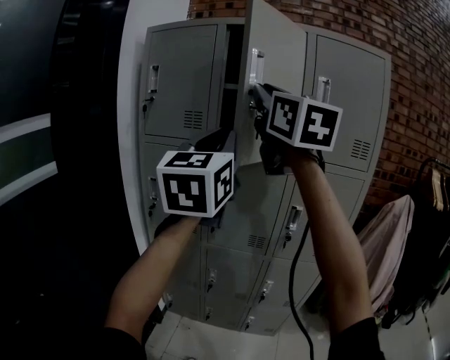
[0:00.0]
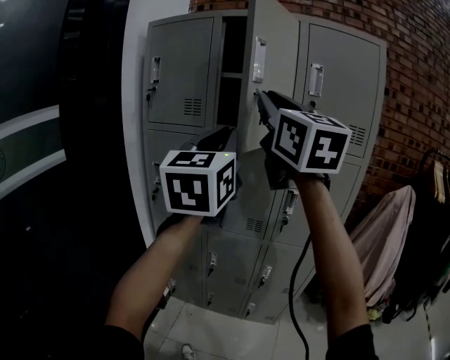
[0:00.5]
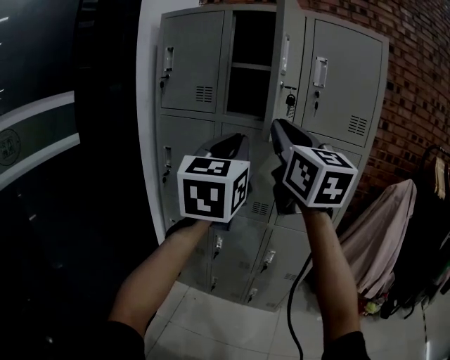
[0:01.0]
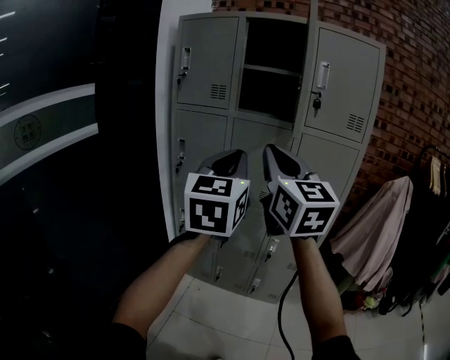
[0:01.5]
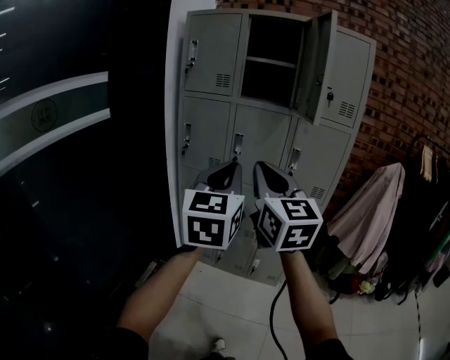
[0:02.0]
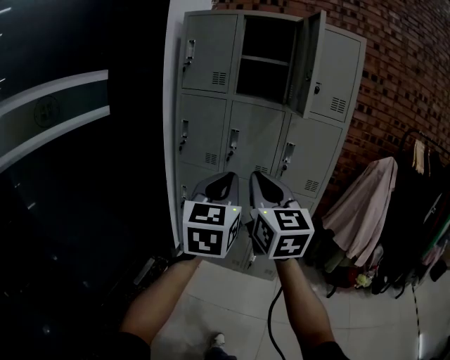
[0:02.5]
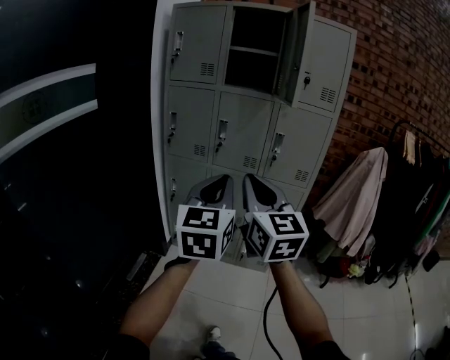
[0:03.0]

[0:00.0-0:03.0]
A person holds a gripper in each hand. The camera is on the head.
0.0 to 1.5 s: The two grippers go approximately 25 cm backward and downward.
1.5 to 3.0 s: The two grippers go roughly 20 cm backward and downward.

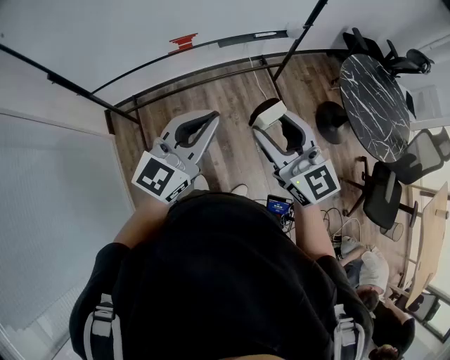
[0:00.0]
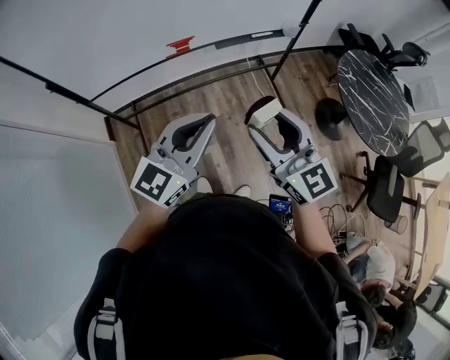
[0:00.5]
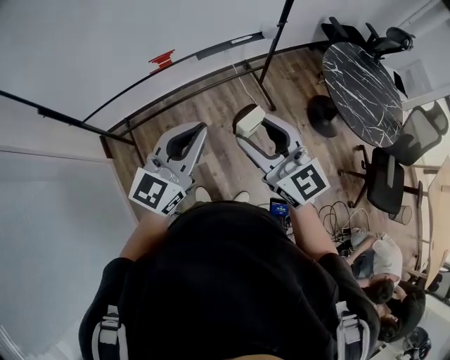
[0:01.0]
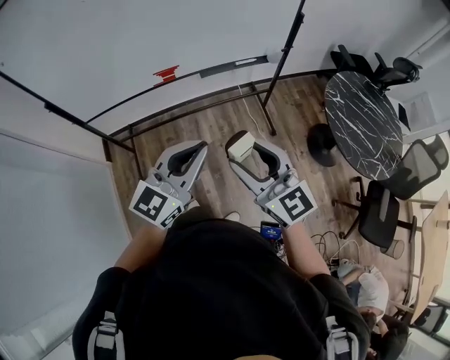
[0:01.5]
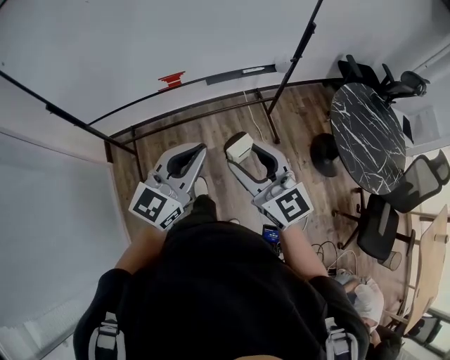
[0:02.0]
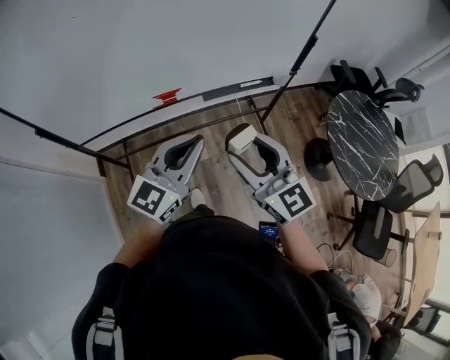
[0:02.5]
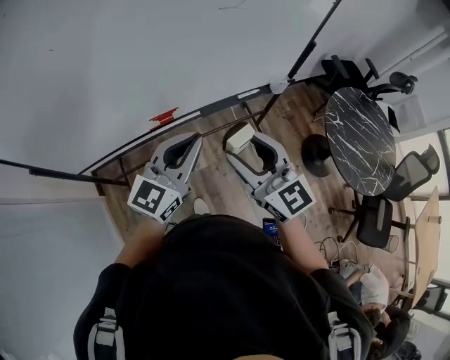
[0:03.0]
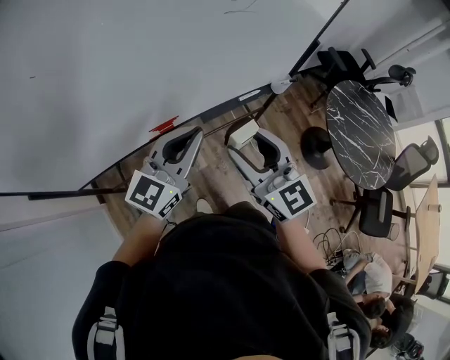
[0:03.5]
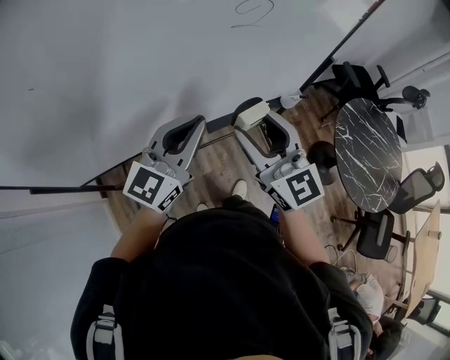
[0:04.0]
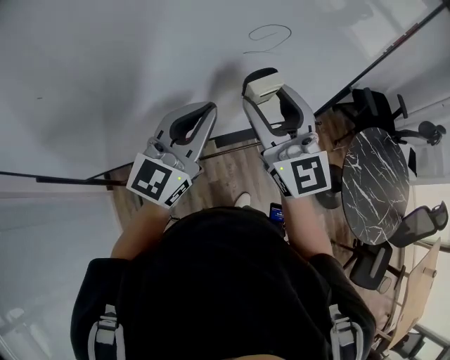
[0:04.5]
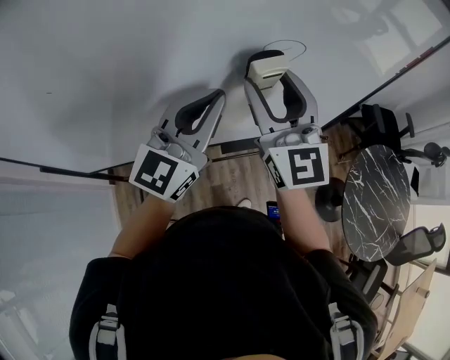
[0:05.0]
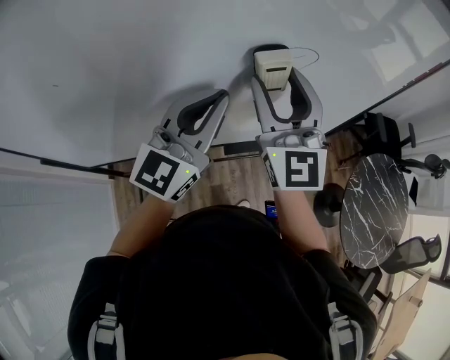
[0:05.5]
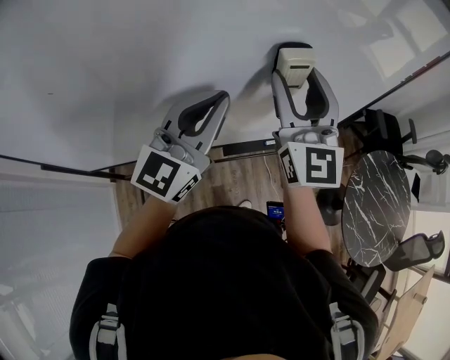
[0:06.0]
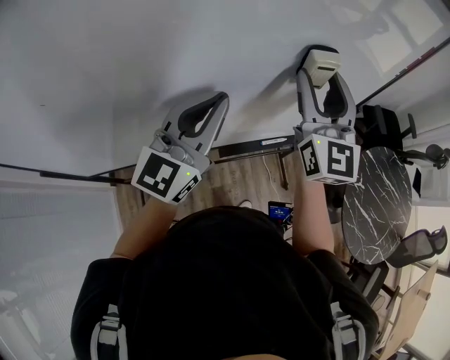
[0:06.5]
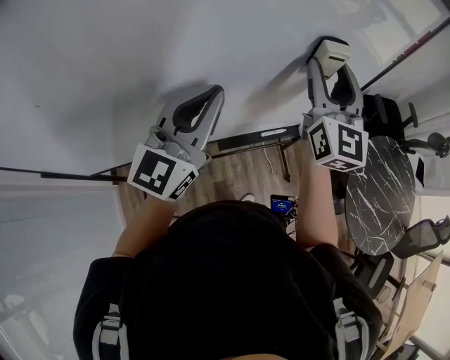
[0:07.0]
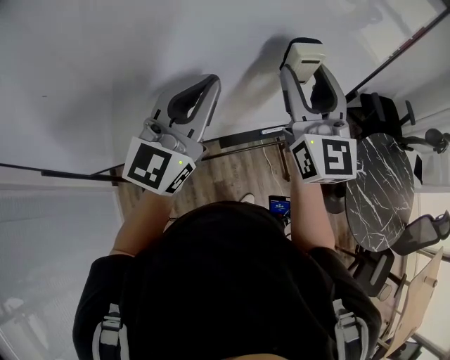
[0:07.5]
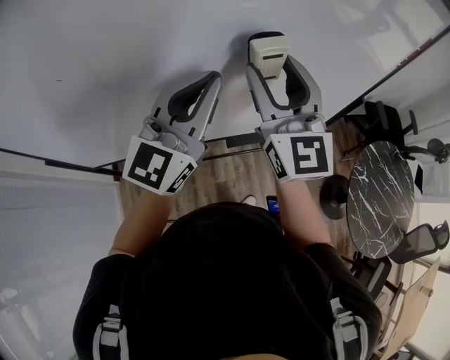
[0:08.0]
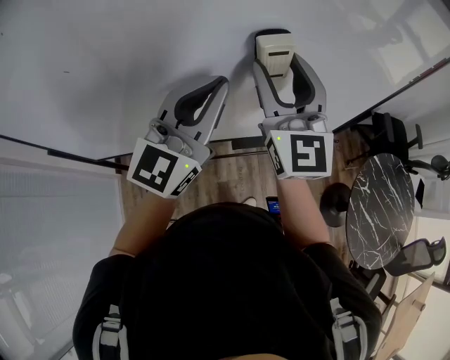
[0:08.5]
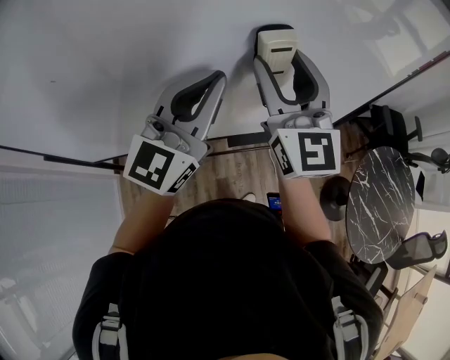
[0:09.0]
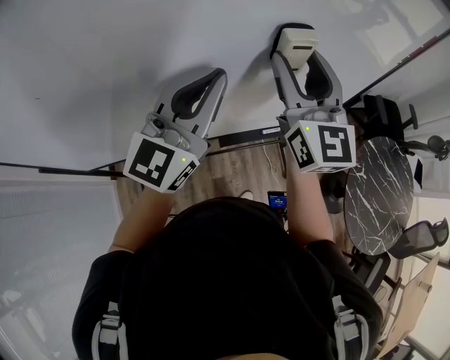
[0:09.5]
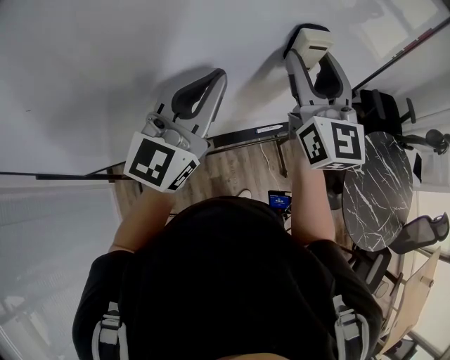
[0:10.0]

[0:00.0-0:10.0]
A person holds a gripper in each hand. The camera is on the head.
0.0 to 2.0 s: The right gripper changes place by about 5 cm; the left gripper is displaced to the right by approximately 5 cm.
2.0 to 4.0 s: The two grippers go about 35 cm forward.
4.0 to 6.0 s: Both grippers travel together forward and upward, roughly 15 cm.
6.0 to 8.0 s: The right gripper travels to the right and back again, about 10 cm each way.
8.0 to 10.0 s: The left gripper is displaced to the right by some 5 cm. The right gripper goes some 15 cm to the right and forward.

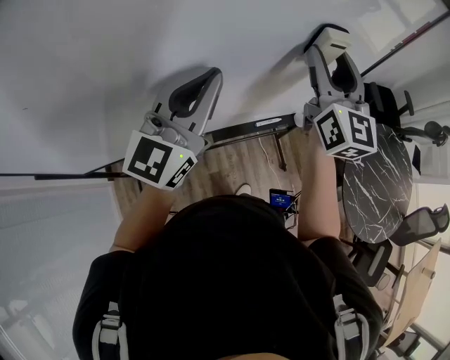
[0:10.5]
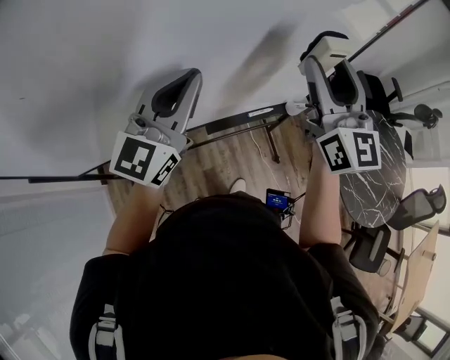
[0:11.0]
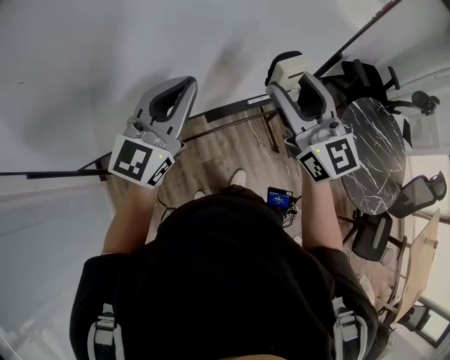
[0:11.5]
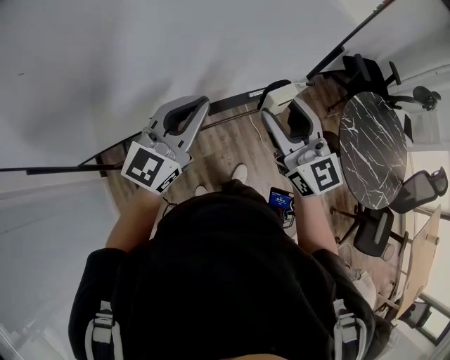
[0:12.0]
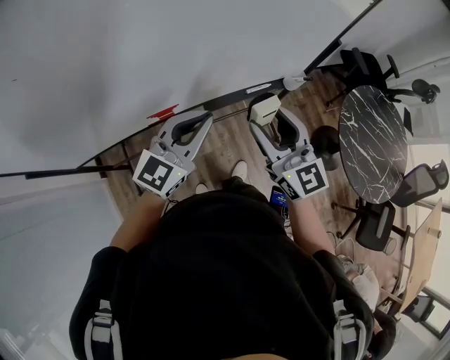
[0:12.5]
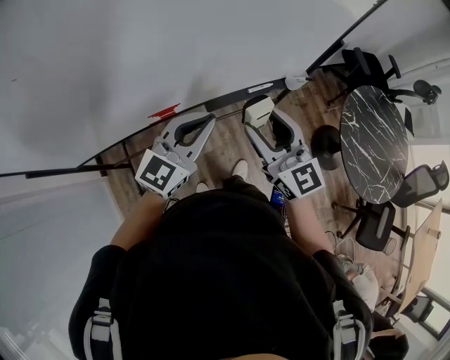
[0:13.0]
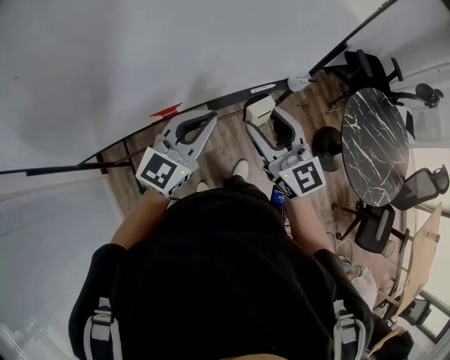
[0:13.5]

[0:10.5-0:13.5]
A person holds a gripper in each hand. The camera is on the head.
10.5 to 12.0 s: The right gripper heads backward and downward, covering approximately 25 cm, while the left gripper shifts approximately 15 cm backward and downward.
12.0 to 13.5 s: The two grippers go roughly 5 cm downward.

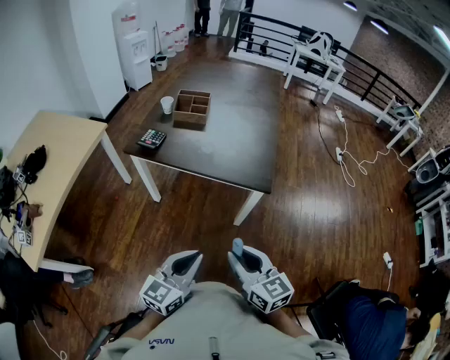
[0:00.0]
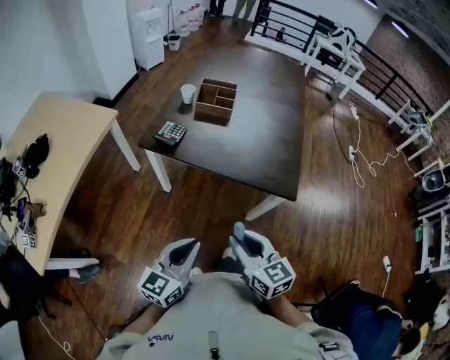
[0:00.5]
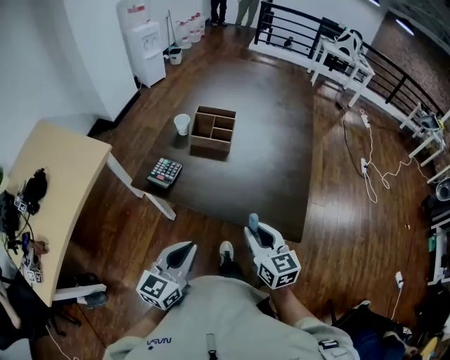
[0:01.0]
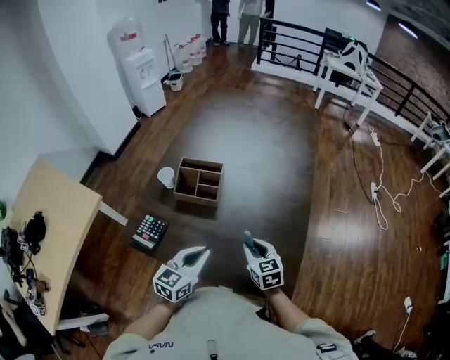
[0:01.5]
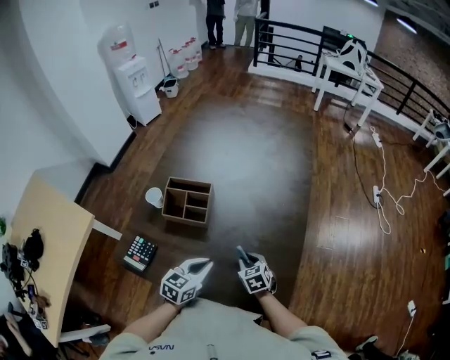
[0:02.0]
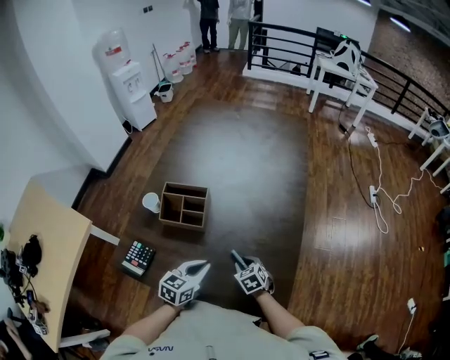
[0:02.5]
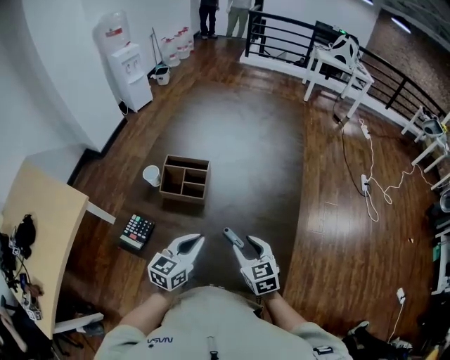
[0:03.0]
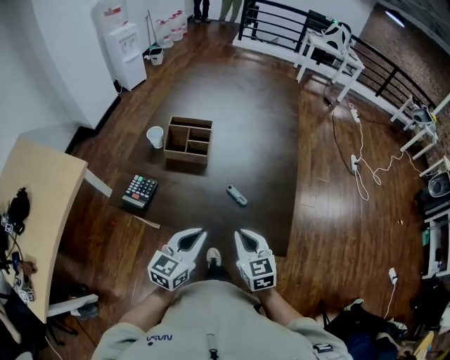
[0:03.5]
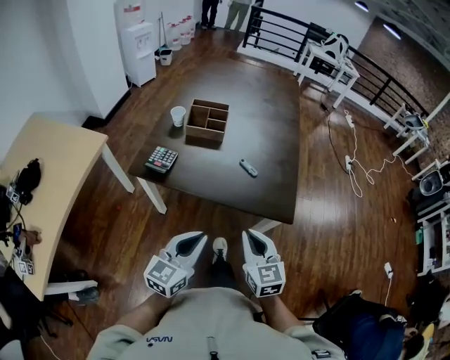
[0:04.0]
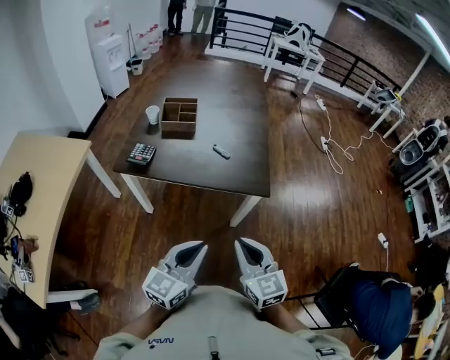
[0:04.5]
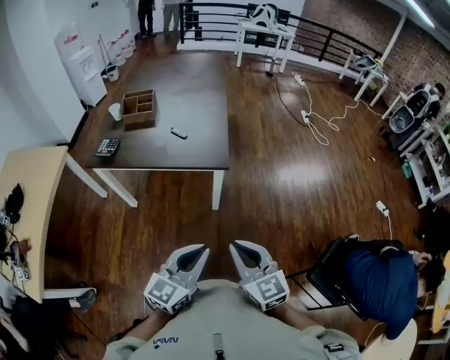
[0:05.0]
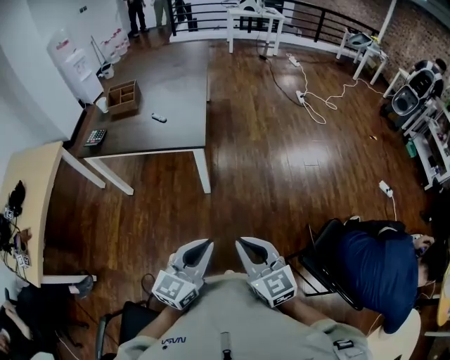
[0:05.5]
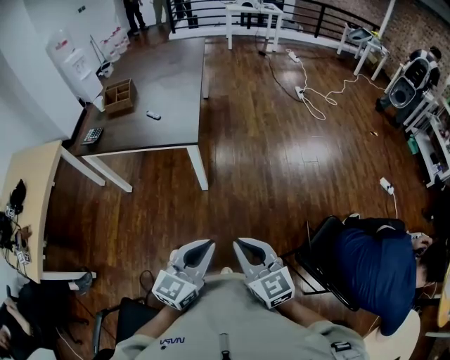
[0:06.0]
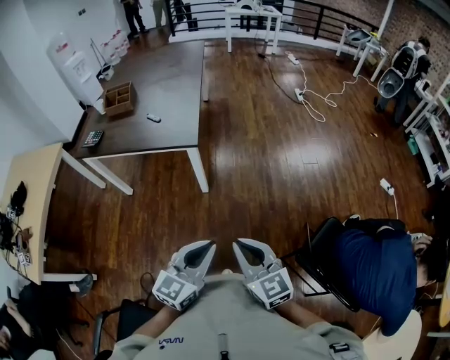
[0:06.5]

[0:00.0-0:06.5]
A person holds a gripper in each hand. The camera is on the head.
0.0 to 2.0 s: Both grippers are carried forward, roughly 50 cm. The right gripper travels downward by approximately 25 cm, and angles its fingers downward, by some 30 degrees, while the left gripper turns by approximately 20 degrees.
2.0 to 4.5 s: Both grippers are carried backward, some 40 cm. The right gripper shifts about 25 cm upward, tilts its fingers roughly 30 degrees upward, and closes its fingers. The left gripper changes its angle by some 30 degrees.
4.5 to 6.5 s: Both grippers travel together to the right and backward, some 35 cm.

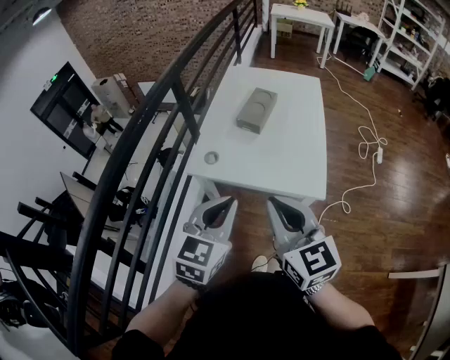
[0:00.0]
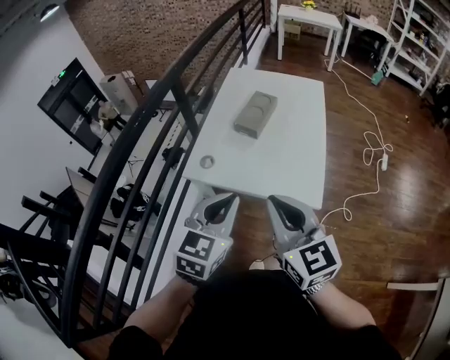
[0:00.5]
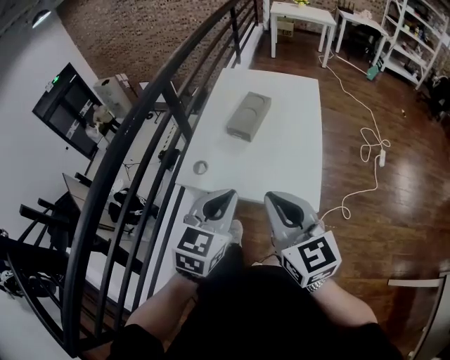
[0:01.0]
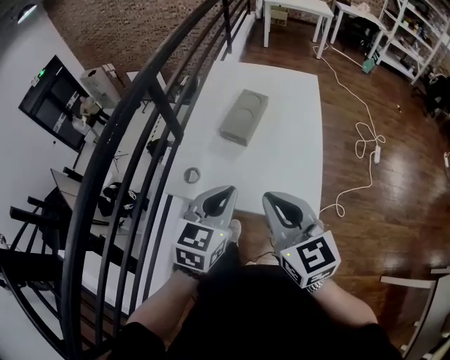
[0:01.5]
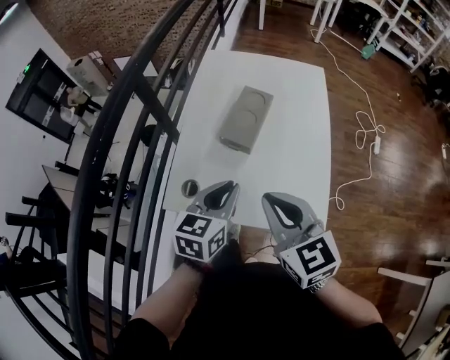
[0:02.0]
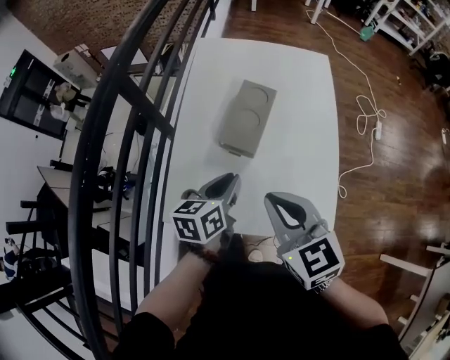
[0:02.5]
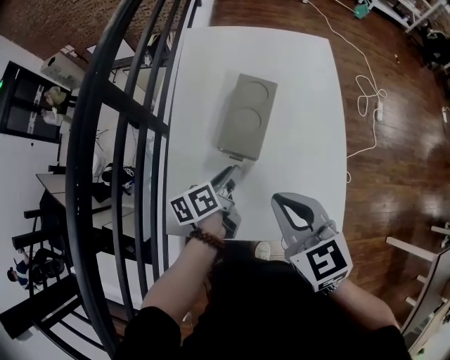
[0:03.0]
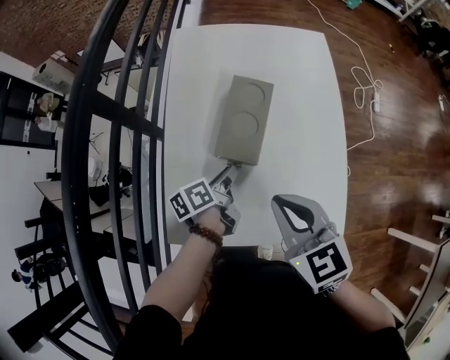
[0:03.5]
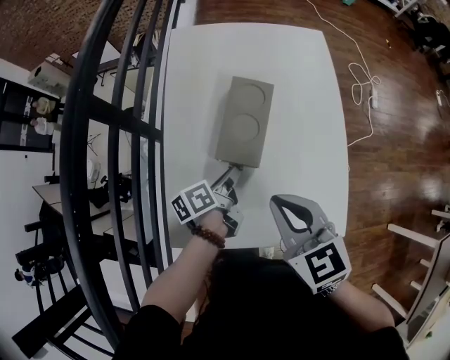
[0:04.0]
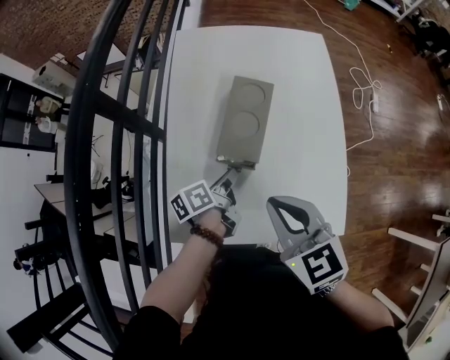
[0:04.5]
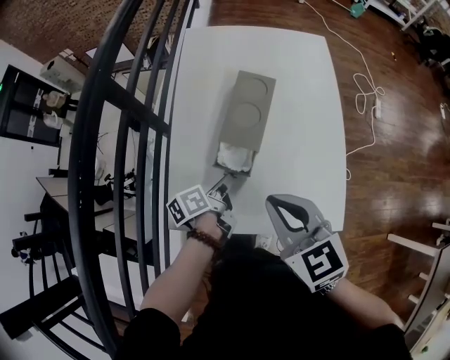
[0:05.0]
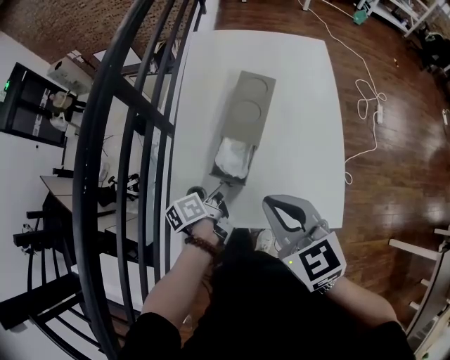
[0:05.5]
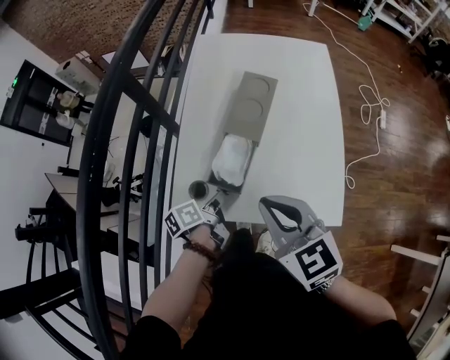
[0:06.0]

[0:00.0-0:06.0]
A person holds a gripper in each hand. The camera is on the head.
0.0 to 2.0 s: The two grippers go some 20 cm forward. The left gripper turns by approximately 20 degrees.
2.0 to 4.0 s: The left gripper shifts about 20 cm downward and forward, and rotates around the line of its fingers by approximately 50 degrees, counterclockwise from behind; the right gripper goes roughly 10 cm forward and downward.
4.0 to 6.0 s: The right gripper travels backward by some 10 cm, while the left gripper shifts approximately 15 cm backward and to the left.
